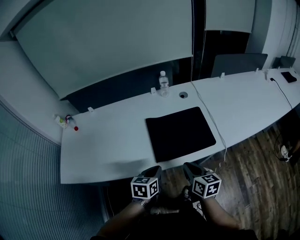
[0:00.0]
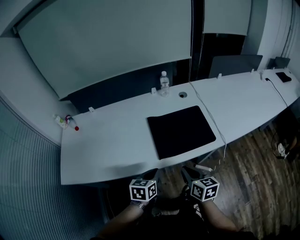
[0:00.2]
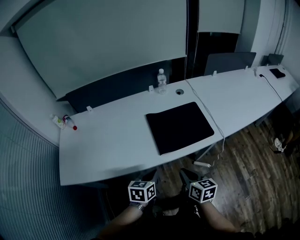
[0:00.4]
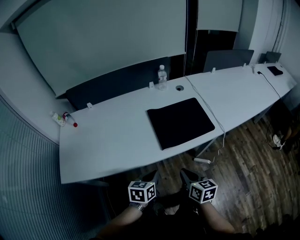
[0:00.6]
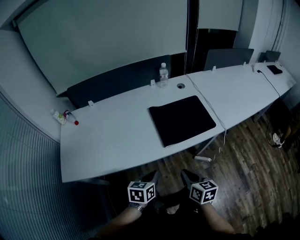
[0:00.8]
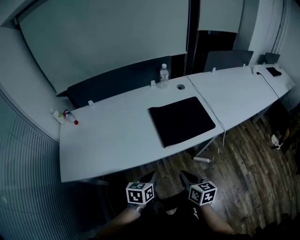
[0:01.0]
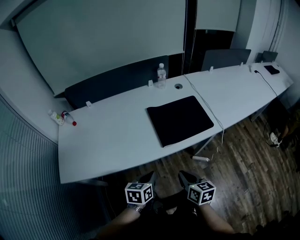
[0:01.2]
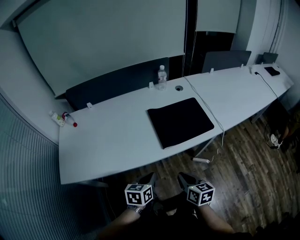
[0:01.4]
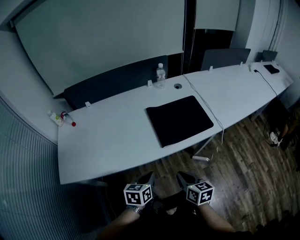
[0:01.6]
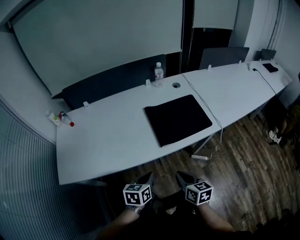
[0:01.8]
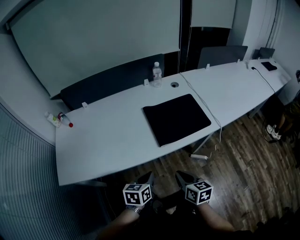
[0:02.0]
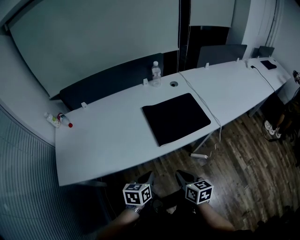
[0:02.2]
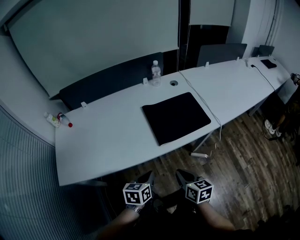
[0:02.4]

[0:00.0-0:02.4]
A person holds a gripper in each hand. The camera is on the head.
0:00.0 to 0:01.2: The grippers both shift backward and to the left by about 15 cm.
0:01.2 to 0:02.4: Neither gripper changes place.

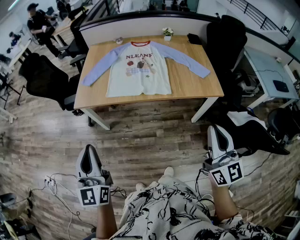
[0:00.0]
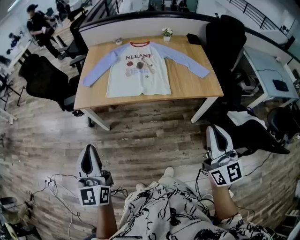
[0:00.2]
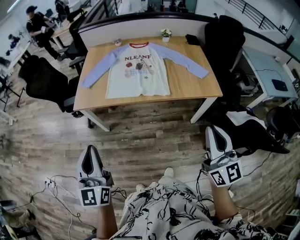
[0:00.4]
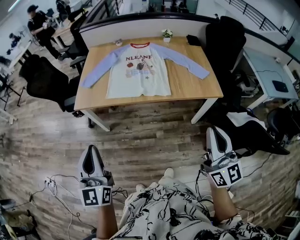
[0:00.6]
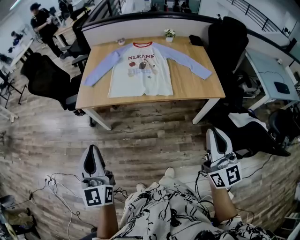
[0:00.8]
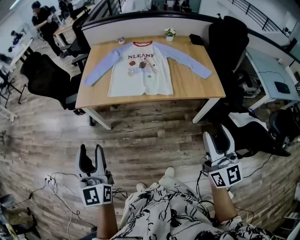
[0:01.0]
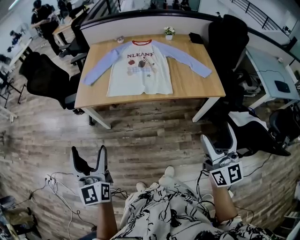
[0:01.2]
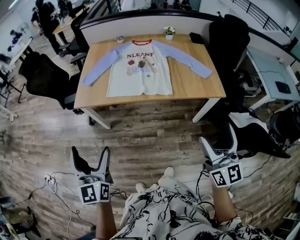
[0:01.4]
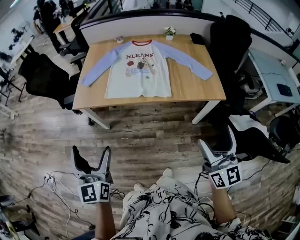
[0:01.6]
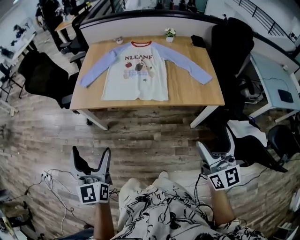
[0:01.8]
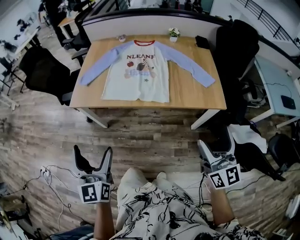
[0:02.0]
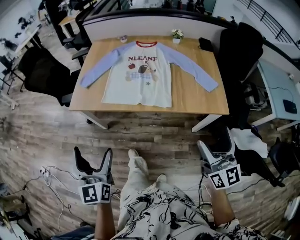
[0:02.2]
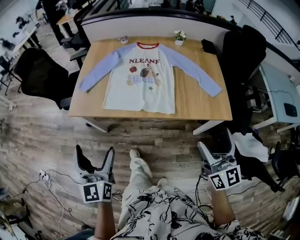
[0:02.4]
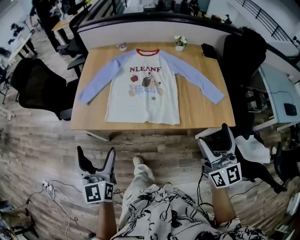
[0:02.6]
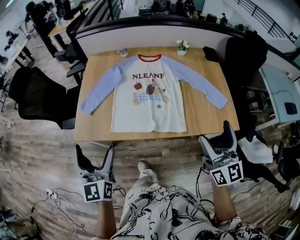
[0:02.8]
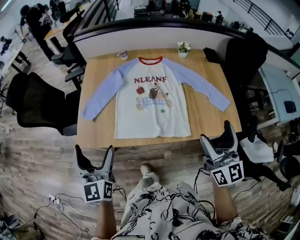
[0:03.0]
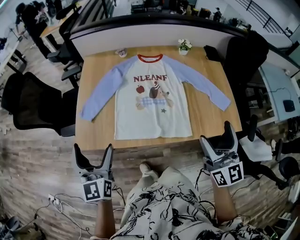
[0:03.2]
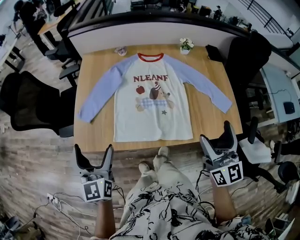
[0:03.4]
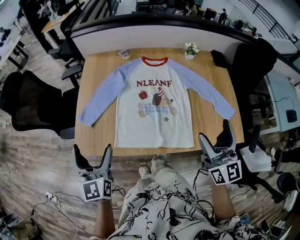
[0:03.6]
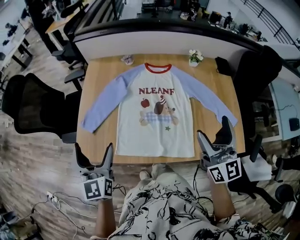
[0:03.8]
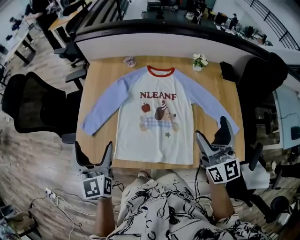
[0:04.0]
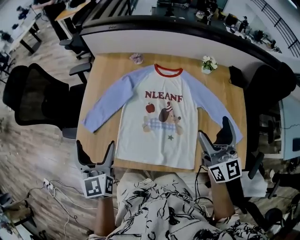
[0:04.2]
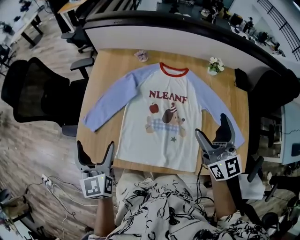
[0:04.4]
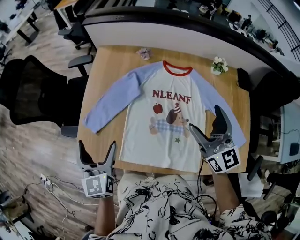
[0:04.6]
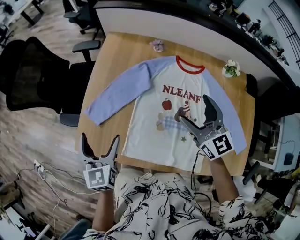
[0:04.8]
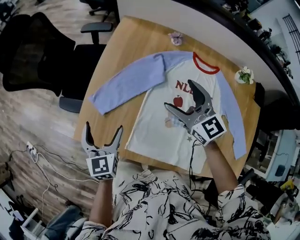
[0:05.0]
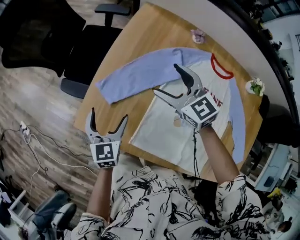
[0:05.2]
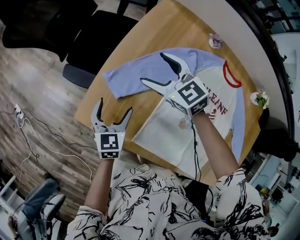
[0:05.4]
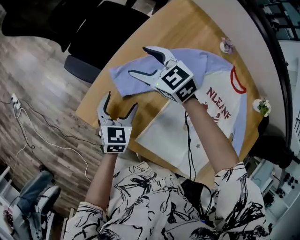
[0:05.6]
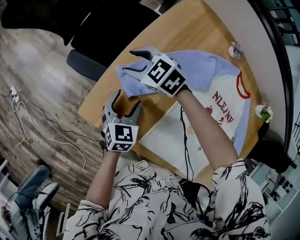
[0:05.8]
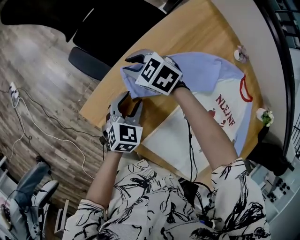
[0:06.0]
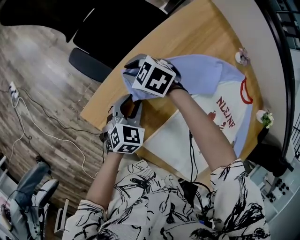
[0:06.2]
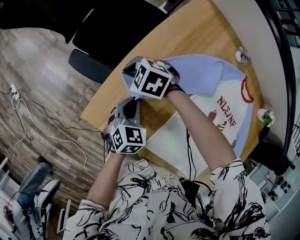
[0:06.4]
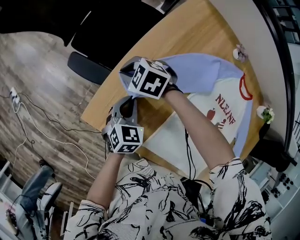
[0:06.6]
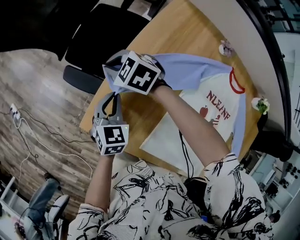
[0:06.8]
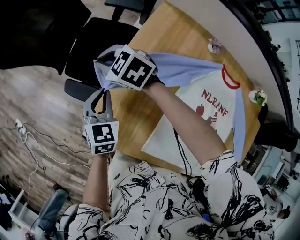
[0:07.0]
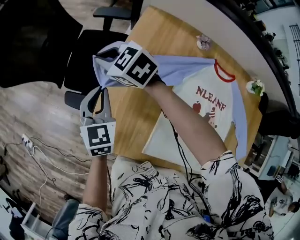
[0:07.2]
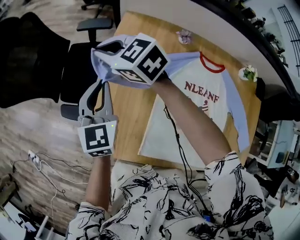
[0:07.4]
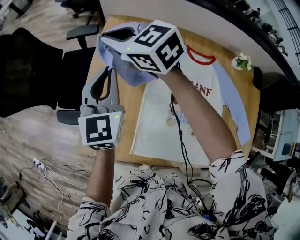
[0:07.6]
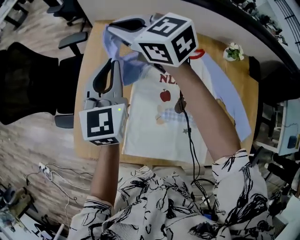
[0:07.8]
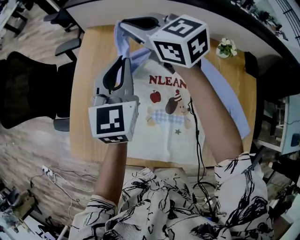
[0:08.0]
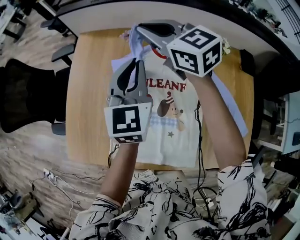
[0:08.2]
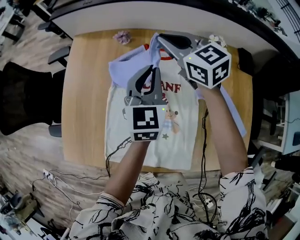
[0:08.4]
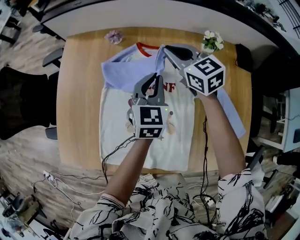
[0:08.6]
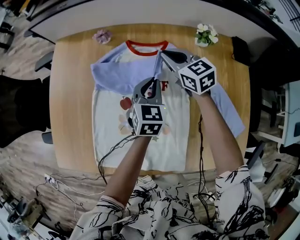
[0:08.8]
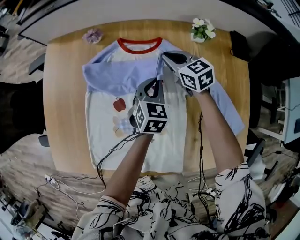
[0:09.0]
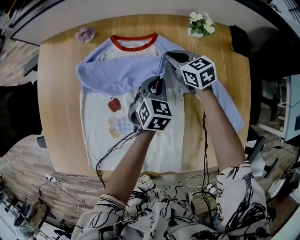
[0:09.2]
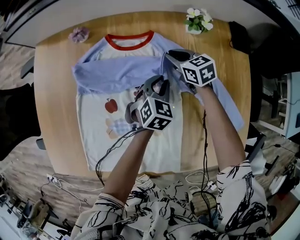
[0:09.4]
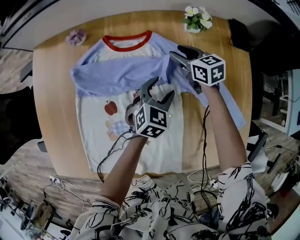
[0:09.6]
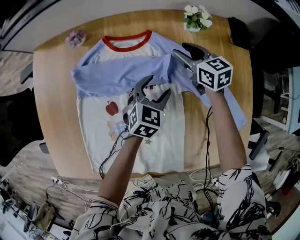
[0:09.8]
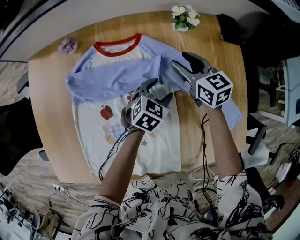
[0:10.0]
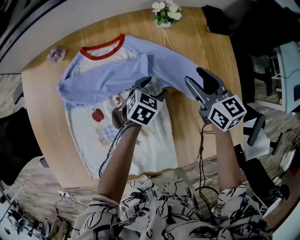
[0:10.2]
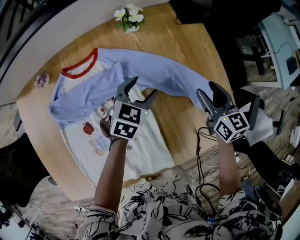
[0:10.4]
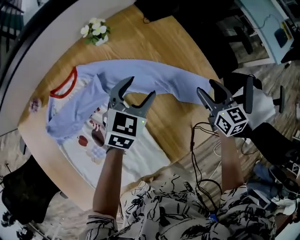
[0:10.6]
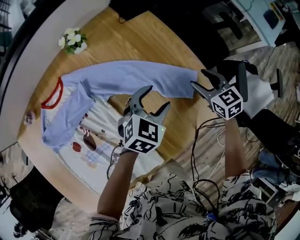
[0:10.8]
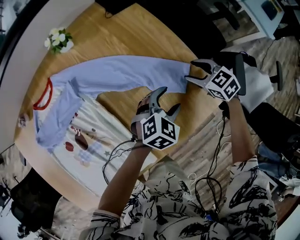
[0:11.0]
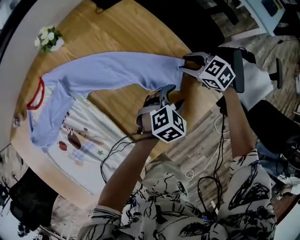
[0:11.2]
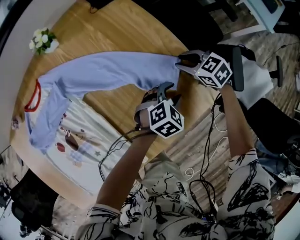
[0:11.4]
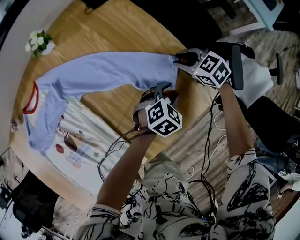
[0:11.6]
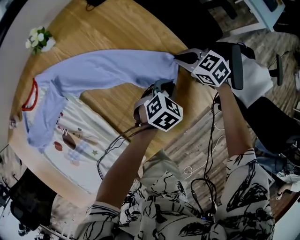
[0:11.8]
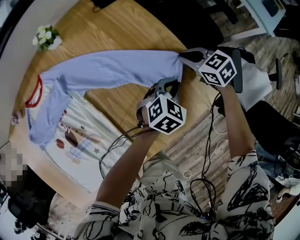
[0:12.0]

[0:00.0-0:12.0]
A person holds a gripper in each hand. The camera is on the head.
0:00.0 to 0:01.6: The left gripper opens up, while the right gripper ends up about 5 cm from where it was, and opens its fingers.
0:01.6 to 0:03.0: Both grippers move forward, roughly 30 cm.
0:03.0 to 0:04.4: The grippers both shift forward by roughly 25 cm.
0:04.4 to 0:06.0: The left gripper heads downward, covering some 30 cm, angles its fingers downward, by roughly 30 degrees, and closes. The right gripper shifts by approximately 70 cm, angles its fingers downward, by roughly 50 degrees, and closes its fingers.
0:06.0 to 0:07.6: The two grippers go about 30 cm upward. The right gripper changes its angle by about 50 degrees. Meanwhile the left gripper points its fingers approximately 30 degrees further upward.
0:07.6 to 0:09.0: The two grippers travel together, about 50 cm. The left gripper changes its angle by approximately 30 degrees. Meanwhile the right gripper changes its angle by roughly 30 degrees.
0:09.0 to 0:10.4: The left gripper goes downward and returns, roughly 5 cm each way, turns by roughly 40 degrees, and opens. Meanwhile the right gripper changes place by some 40 cm, swivels approximately 40 degrees, and opens.
0:10.4 to 0:12.0: The right gripper shifts approximately 25 cm to the right and downward, rotates roughly 30 degrees, and closes its fingers. Meanwhile the left gripper goes roughly 35 cm to the right, rotates about 30 degrees, and closes up.

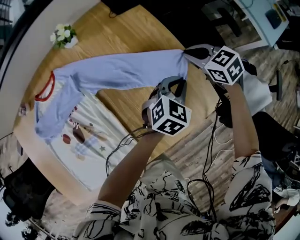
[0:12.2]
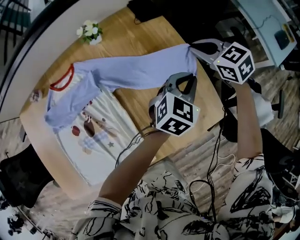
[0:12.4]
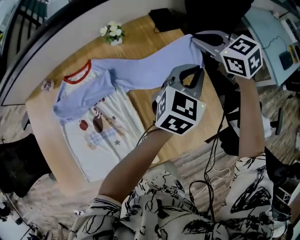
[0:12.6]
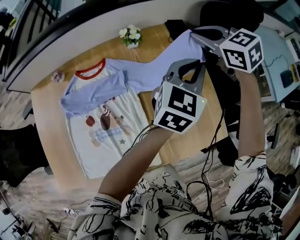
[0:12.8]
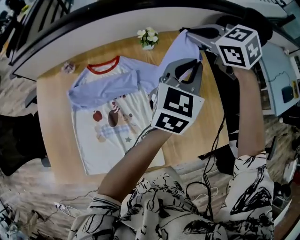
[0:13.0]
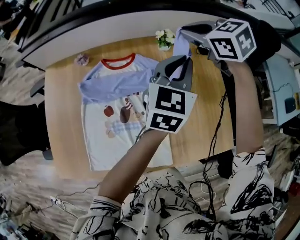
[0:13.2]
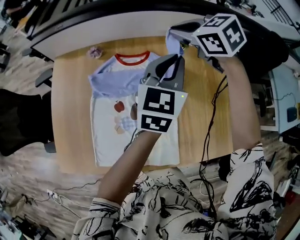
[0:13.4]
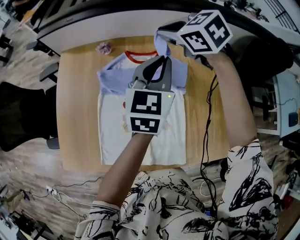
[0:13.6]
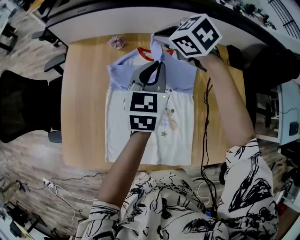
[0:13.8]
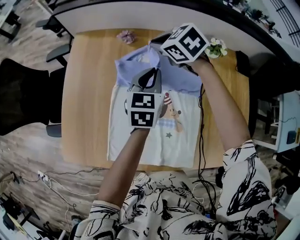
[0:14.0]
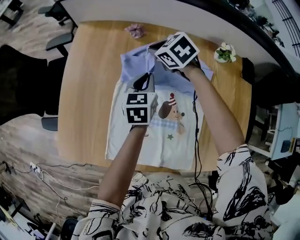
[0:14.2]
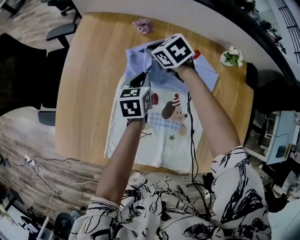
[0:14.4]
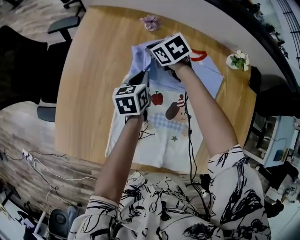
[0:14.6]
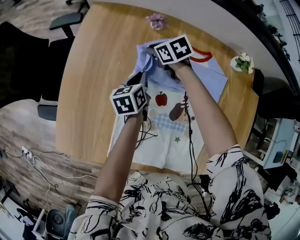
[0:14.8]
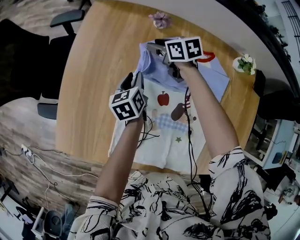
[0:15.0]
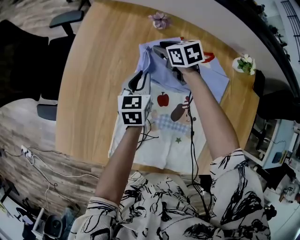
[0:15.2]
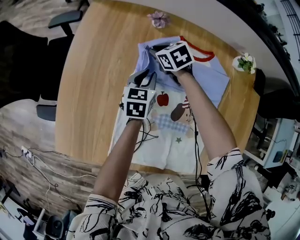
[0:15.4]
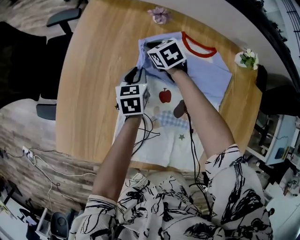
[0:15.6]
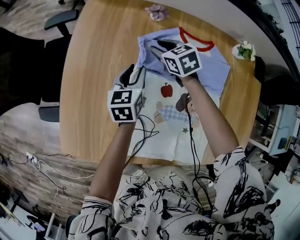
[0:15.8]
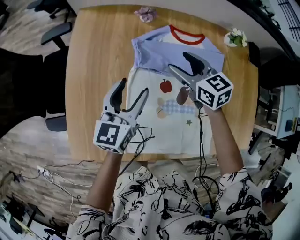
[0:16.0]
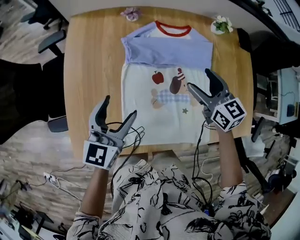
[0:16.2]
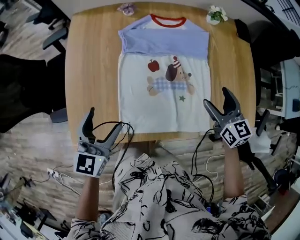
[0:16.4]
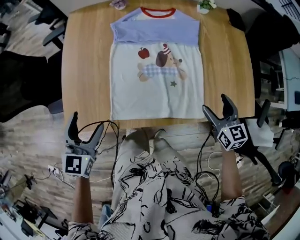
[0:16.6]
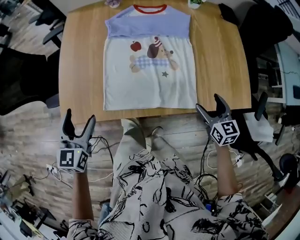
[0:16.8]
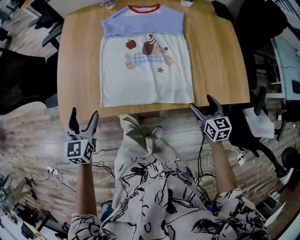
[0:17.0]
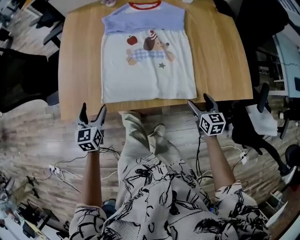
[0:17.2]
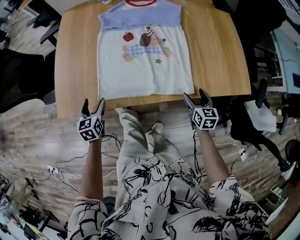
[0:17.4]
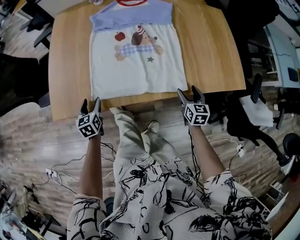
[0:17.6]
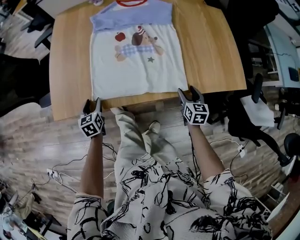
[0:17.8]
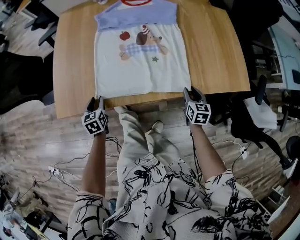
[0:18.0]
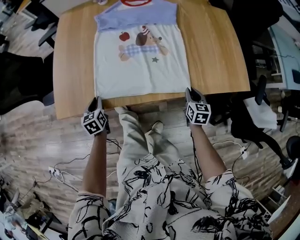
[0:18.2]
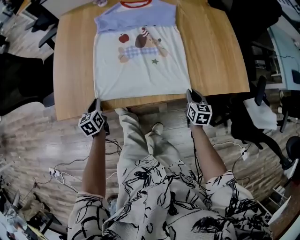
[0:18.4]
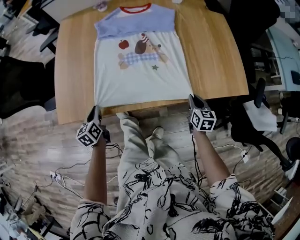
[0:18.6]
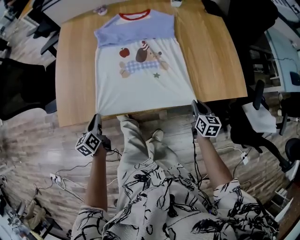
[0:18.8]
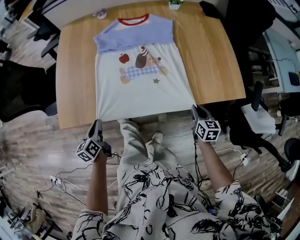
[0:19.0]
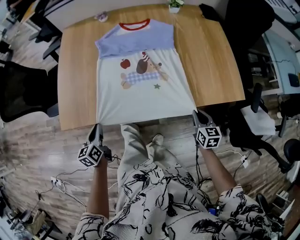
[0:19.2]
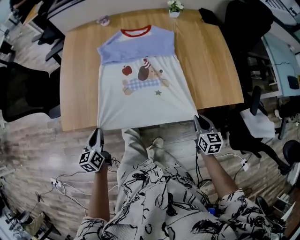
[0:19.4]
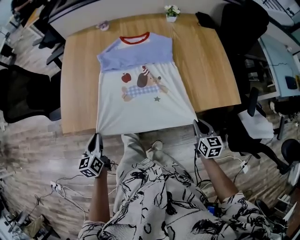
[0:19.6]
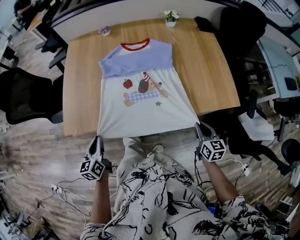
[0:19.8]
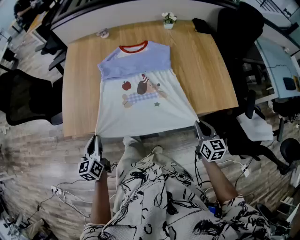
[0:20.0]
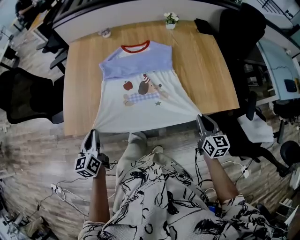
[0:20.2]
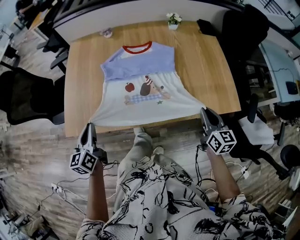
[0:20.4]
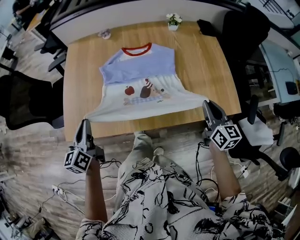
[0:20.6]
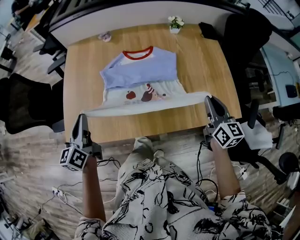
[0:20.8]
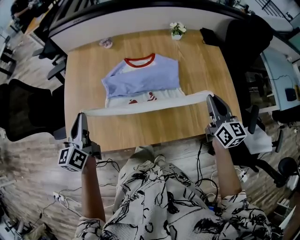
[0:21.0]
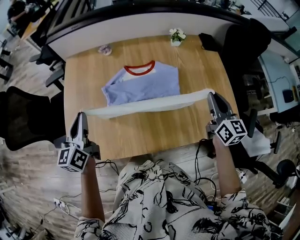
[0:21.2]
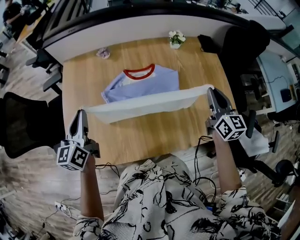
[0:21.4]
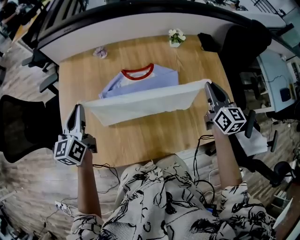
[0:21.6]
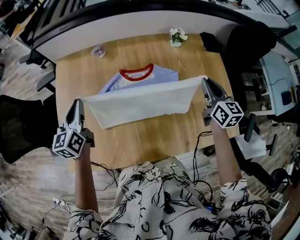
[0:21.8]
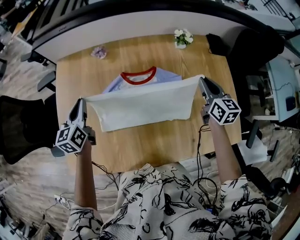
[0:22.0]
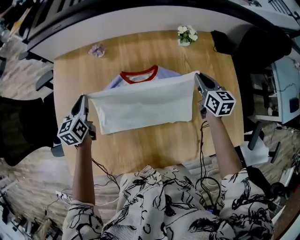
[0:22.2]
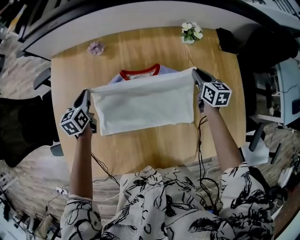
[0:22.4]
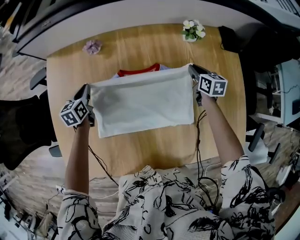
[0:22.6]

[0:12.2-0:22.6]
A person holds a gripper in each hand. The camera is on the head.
0:12.2 to 0:13.6: The two grippers travel together, approximately 60 cm. The right gripper changes its angle by about 40 degrees; the left gripper changes its angle by roughly 60 degrees.
0:13.6 to 0:15.2: The right gripper moves downward, to the left and forward, some 40 cm, and swivels about 20 degrees. Meanwhile the left gripper moves downward and to the left, some 40 cm, and turns by approximately 30 degrees.
0:15.2 to 0:16.6: The left gripper shifts by some 40 cm, swivels some 30 degrees, and opens its fingers. The right gripper shifts by approximately 60 cm, rotates some 40 degrees, and opens.
0:16.6 to 0:18.2: The right gripper heads downward and backward, covering about 20 cm, swivels some 20 degrees, and closes up, while the left gripper goes roughly 20 cm downward, changes its angle by about 30 degrees, and closes.
0:18.2 to 0:19.6: The right gripper shifts about 15 cm backward and upward, while the left gripper moves upward and backward, approximately 15 cm.
0:19.6 to 0:21.2: The grippers both shift forward and upward by roughly 35 cm. The left gripper swivels some 20 degrees. The right gripper rotates roughly 20 degrees.
0:21.2 to 0:22.6: Both grippers move forward and downward, some 40 cm. The right gripper rotates about 30 degrees, while the left gripper points its fingers roughly 30 degrees further downward.
